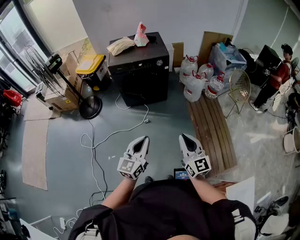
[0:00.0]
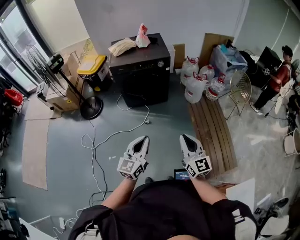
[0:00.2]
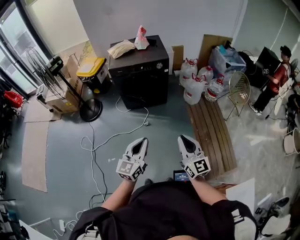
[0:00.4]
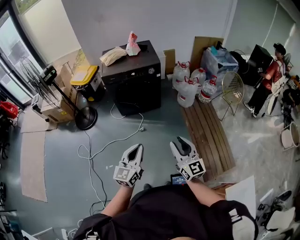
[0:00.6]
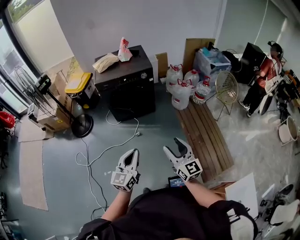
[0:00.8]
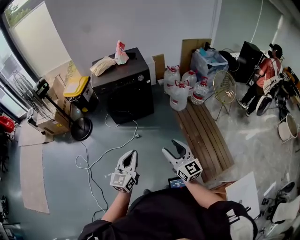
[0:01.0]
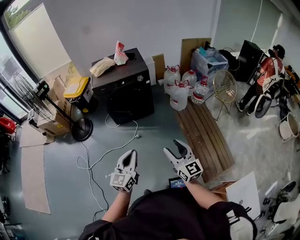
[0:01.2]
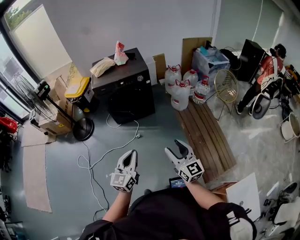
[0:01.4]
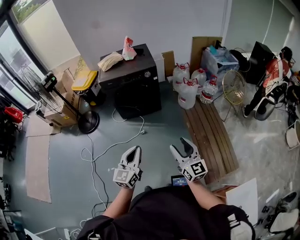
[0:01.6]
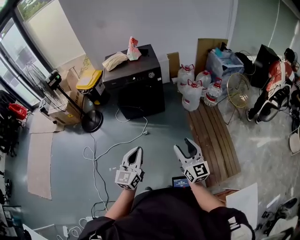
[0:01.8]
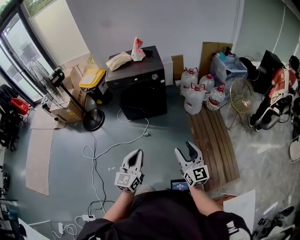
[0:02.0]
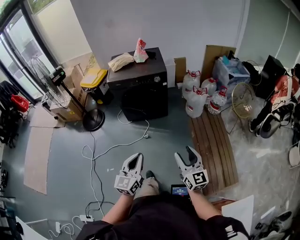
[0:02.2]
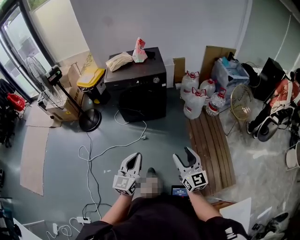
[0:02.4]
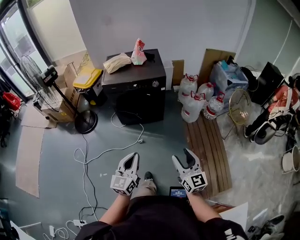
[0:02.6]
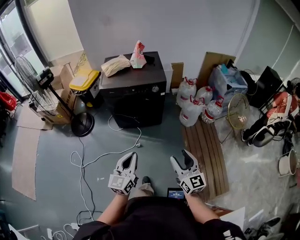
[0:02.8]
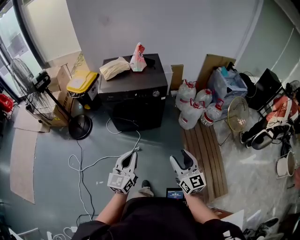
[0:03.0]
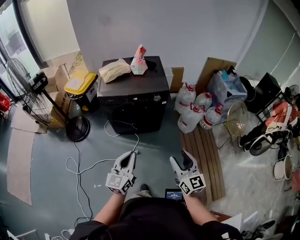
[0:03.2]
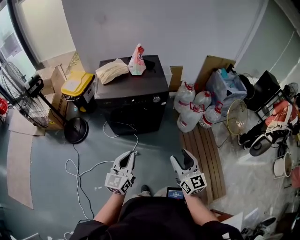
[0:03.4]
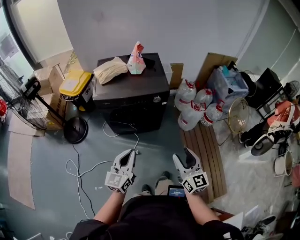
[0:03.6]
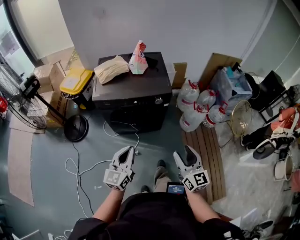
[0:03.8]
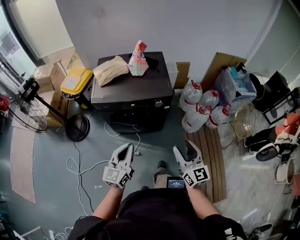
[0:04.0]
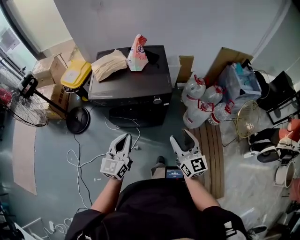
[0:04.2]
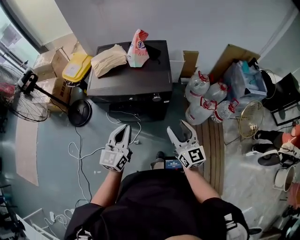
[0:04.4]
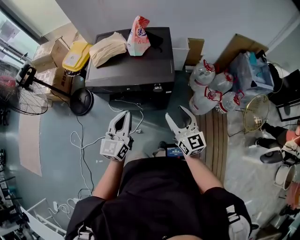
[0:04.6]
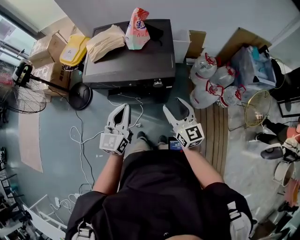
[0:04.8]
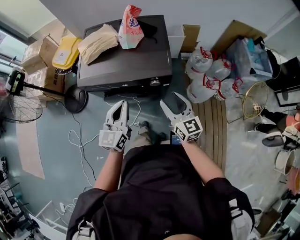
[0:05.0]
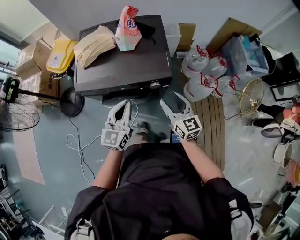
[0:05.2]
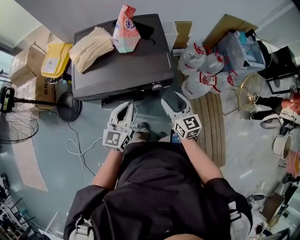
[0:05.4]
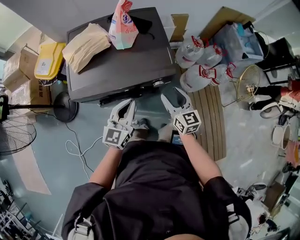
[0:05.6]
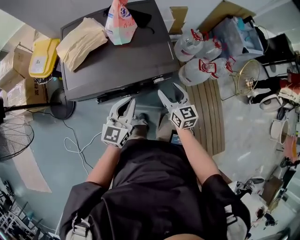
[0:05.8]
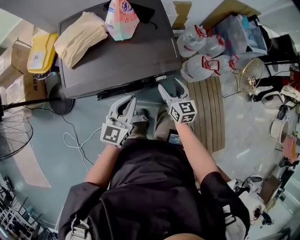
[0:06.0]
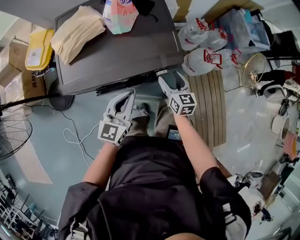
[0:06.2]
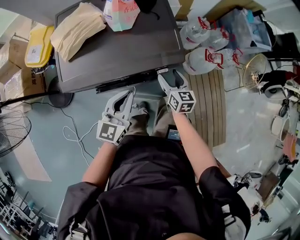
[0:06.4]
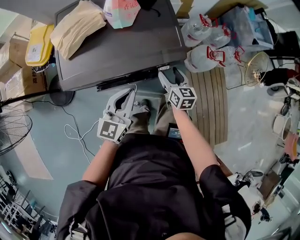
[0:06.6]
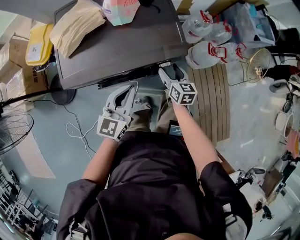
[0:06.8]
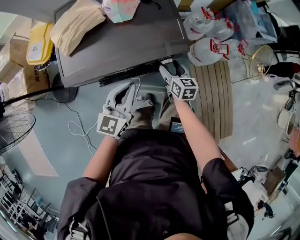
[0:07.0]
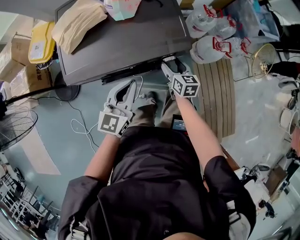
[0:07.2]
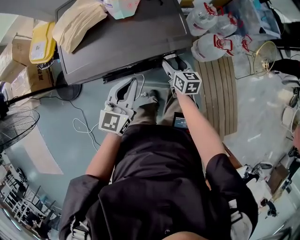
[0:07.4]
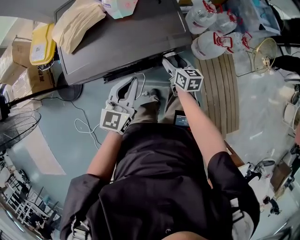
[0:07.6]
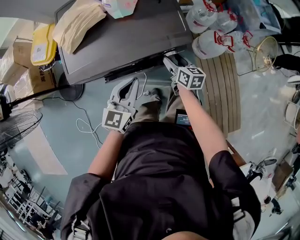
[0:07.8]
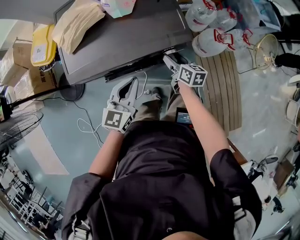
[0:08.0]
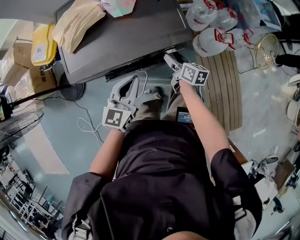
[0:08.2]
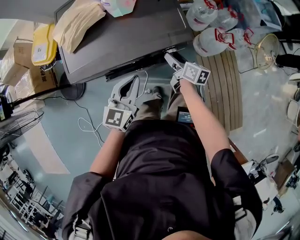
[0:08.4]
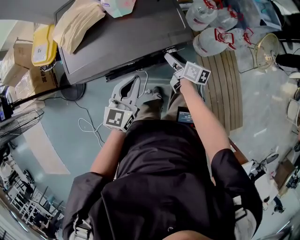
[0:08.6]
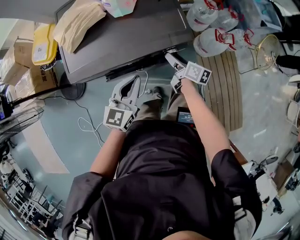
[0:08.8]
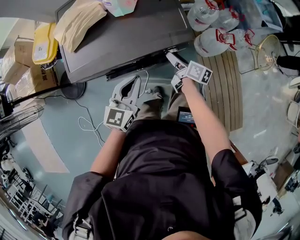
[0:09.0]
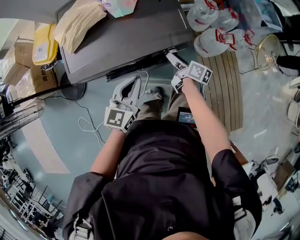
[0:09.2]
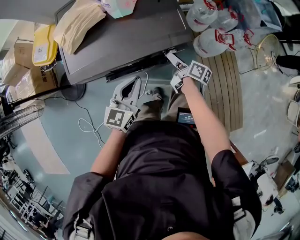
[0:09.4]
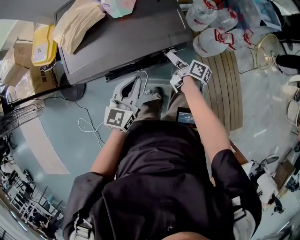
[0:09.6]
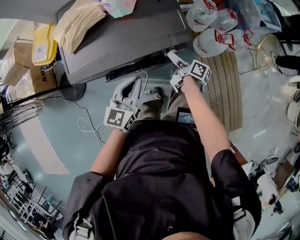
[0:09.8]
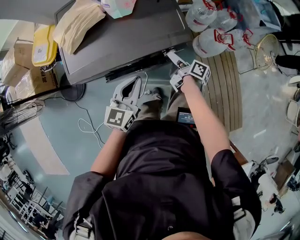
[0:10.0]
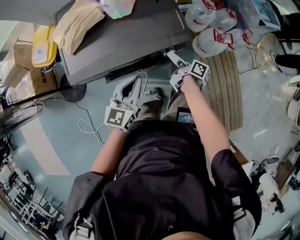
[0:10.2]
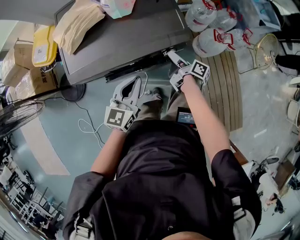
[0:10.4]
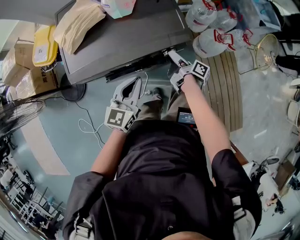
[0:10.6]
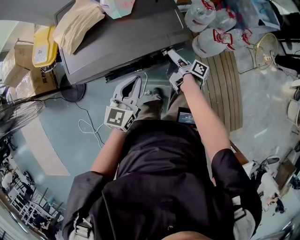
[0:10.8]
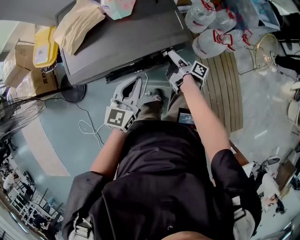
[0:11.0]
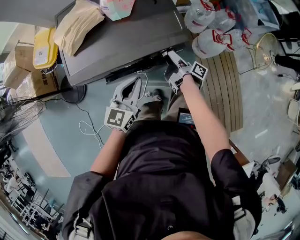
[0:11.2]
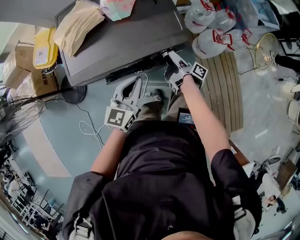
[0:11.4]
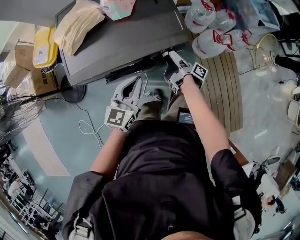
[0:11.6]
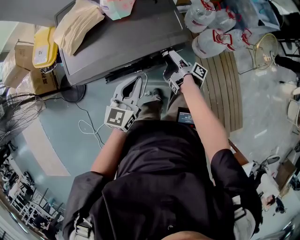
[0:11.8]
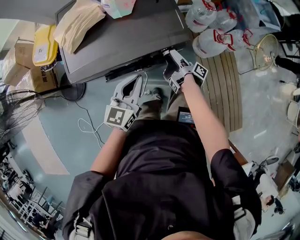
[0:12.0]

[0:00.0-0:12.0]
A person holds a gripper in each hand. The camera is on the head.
0.0 to 1.6 s: The right gripper is displaced to the right by roughly 5 cm, and opens its fingers.
1.6 to 3.0 s: The grippers both shift forward by approximately 20 cm.
3.0 to 4.4 s: The grippers both shift forward by approximately 35 cm.
4.4 to 6.0 s: Both grippers travel together forward and downward, some 25 cm. The left gripper rotates roughly 20 degrees. Meanwhile the right gripper turns by about 30 degrees.
6.0 to 7.6 s: The right gripper shifts roughly 10 cm downward.
7.6 to 9.0 s: The right gripper changes its angle by some 30 degrees.
9.0 to 10.4 s: The right gripper turns by roughly 30 degrees.
10.4 to 12.0 s: The right gripper rotates approximately 20 degrees.

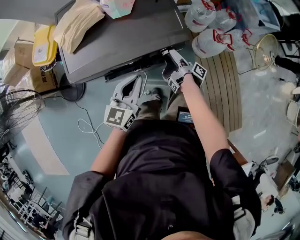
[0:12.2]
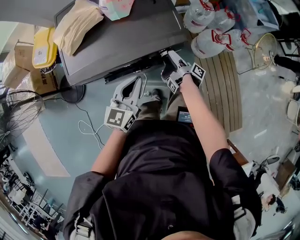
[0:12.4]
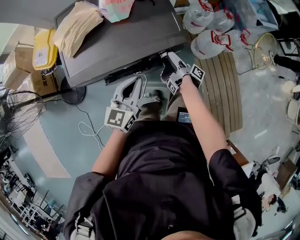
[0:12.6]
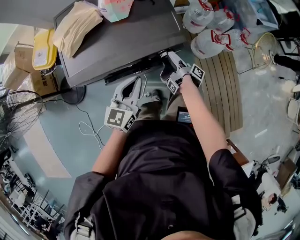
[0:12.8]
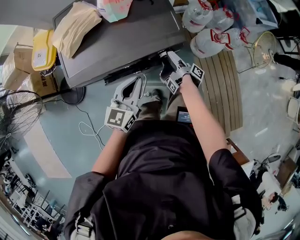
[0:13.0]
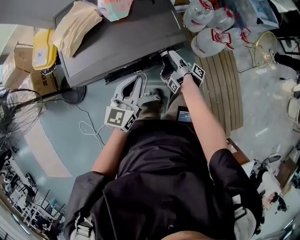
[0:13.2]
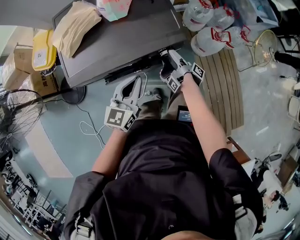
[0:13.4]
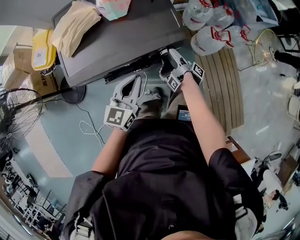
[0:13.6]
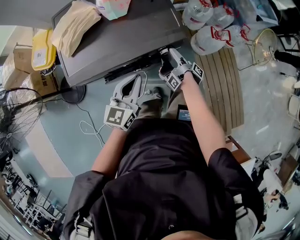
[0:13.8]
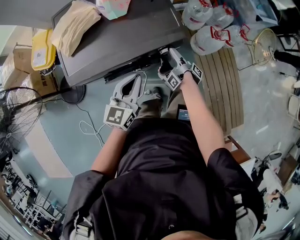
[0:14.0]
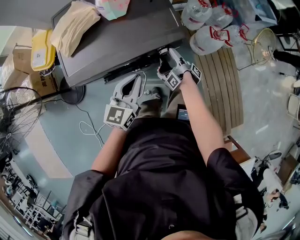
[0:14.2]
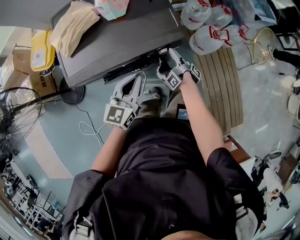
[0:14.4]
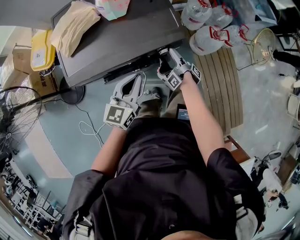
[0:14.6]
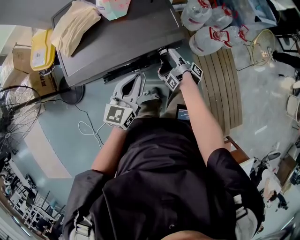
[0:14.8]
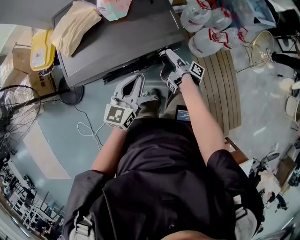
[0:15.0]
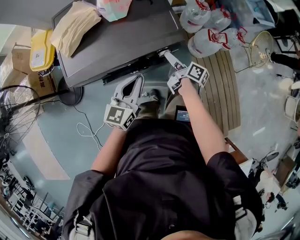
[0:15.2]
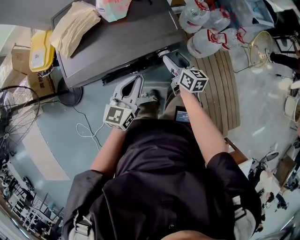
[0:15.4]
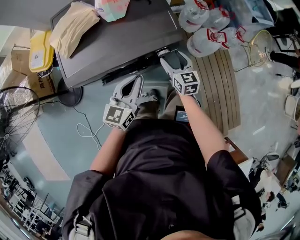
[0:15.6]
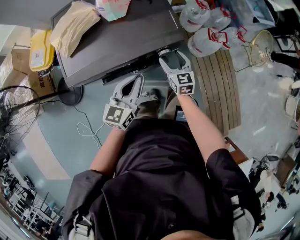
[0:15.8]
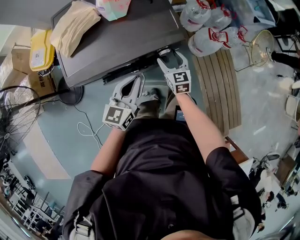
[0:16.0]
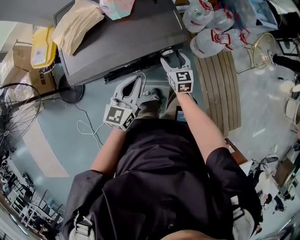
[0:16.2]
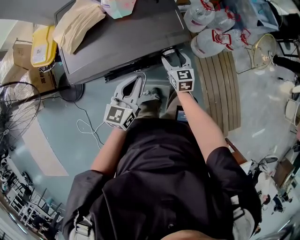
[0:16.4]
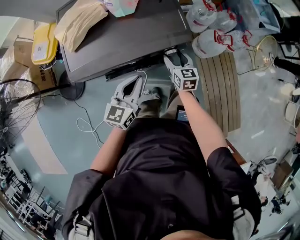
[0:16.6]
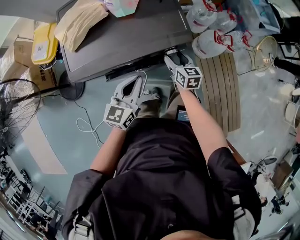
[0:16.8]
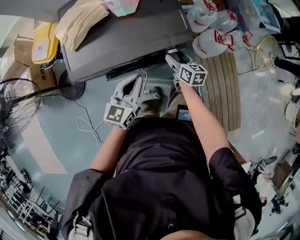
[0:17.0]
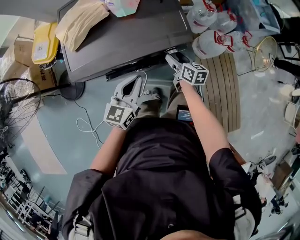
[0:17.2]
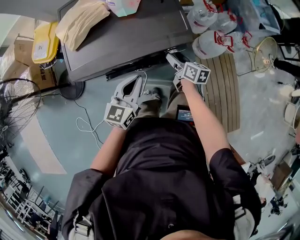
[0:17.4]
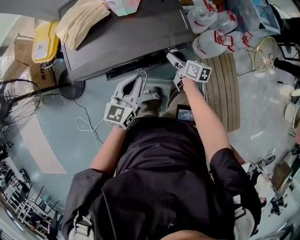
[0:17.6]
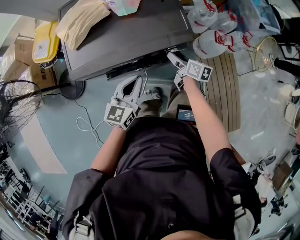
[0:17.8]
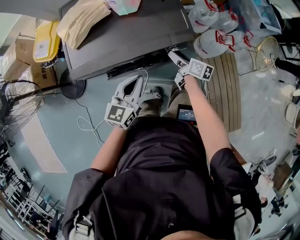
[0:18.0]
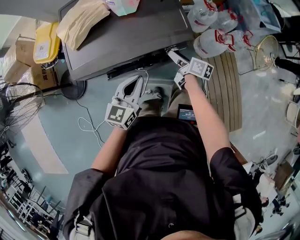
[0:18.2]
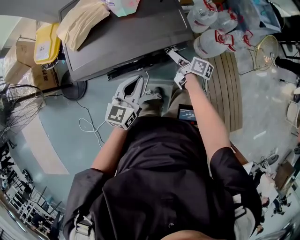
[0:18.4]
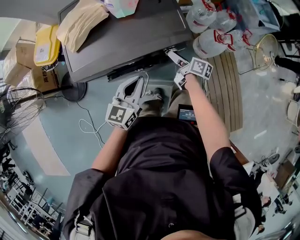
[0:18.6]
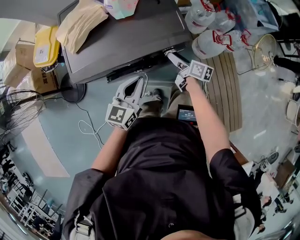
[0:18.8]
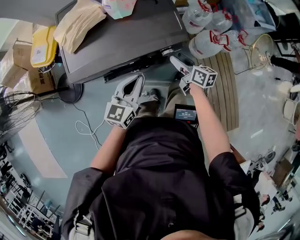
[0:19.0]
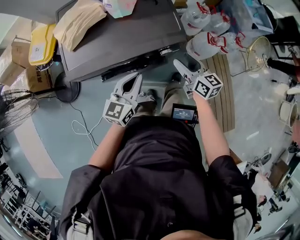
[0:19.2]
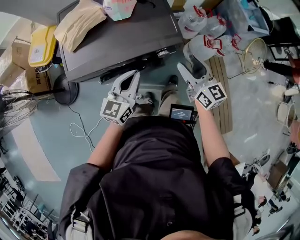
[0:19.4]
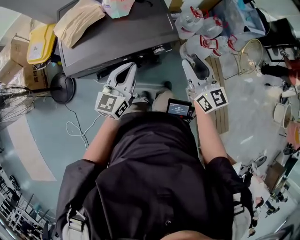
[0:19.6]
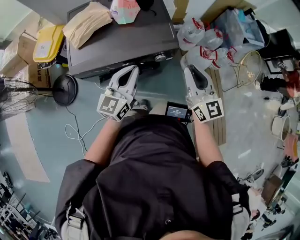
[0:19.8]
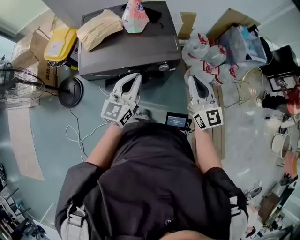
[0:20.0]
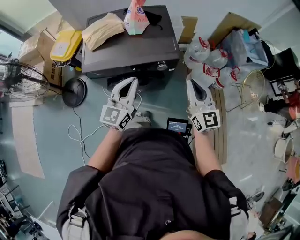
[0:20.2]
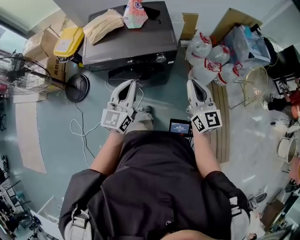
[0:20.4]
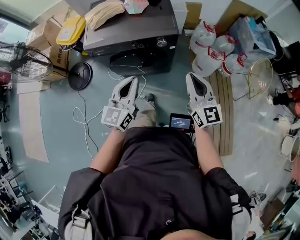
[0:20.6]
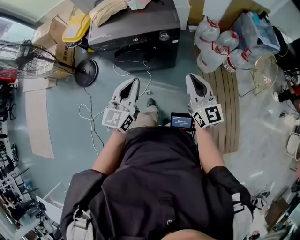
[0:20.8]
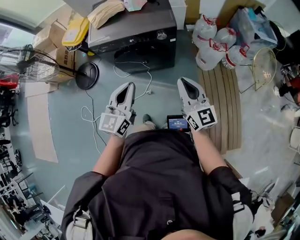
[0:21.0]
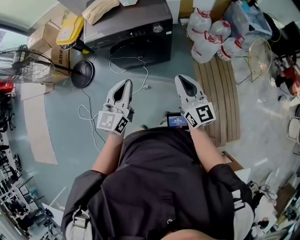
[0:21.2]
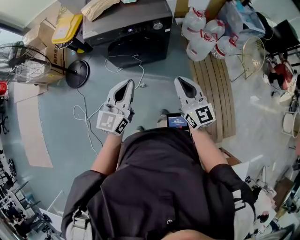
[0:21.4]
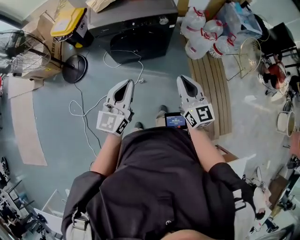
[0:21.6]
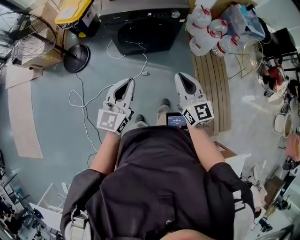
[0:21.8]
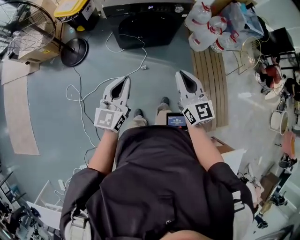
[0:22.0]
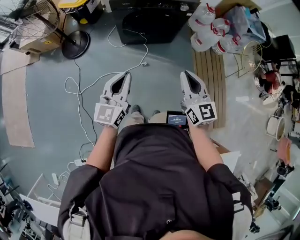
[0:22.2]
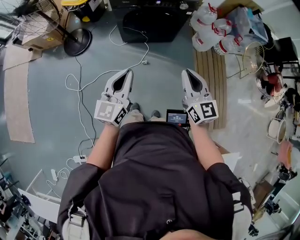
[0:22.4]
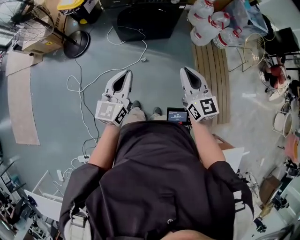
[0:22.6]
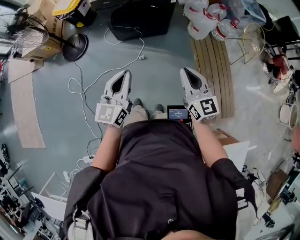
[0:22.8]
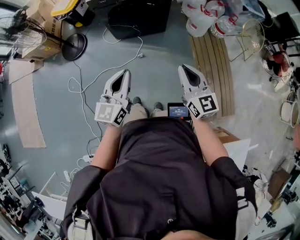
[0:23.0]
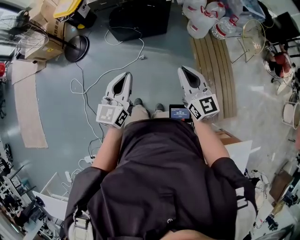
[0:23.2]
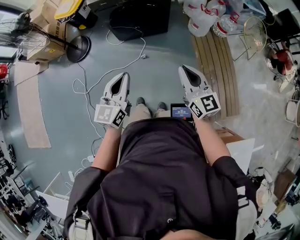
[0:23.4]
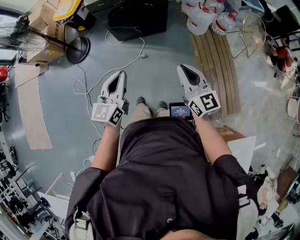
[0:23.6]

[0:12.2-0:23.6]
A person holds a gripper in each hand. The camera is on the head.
12.2 to 13.6 s: The grippers stay close to where they were, moving slightly.
13.6 to 15.0 s: There are only small adjustments of the grippers.
15.0 to 16.4 s: The right gripper twists roughly 100 degrees counterclockwise, seen from behind.
16.4 to 17.8 s: The right gripper rotates around the line of its fingers by roughly 40 degrees, clockwise from behind.
17.8 to 19.4 s: The right gripper heads upward, covering approximately 20 cm, and rotates some 40 degrees.
19.4 to 20.8 s: Both grippers move backward, roughly 25 cm. The right gripper closes its fingers.
20.8 to 22.2 s: The grippers both shift backward and to the left by some 30 cm.
22.2 to 23.6 s: The two grippers go some 15 cm to the right and backward.

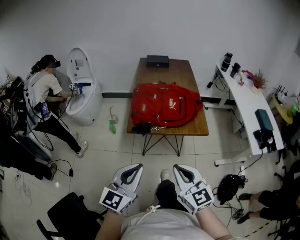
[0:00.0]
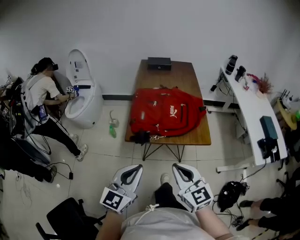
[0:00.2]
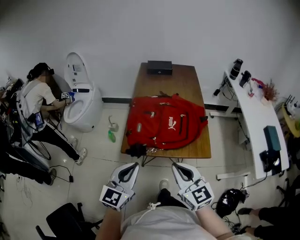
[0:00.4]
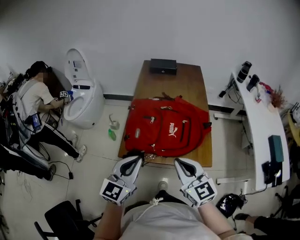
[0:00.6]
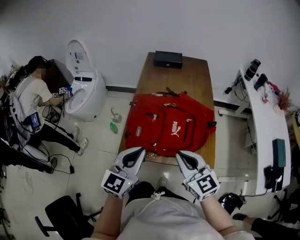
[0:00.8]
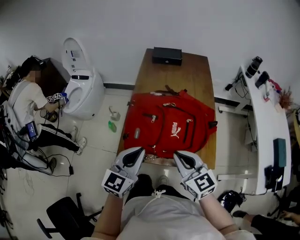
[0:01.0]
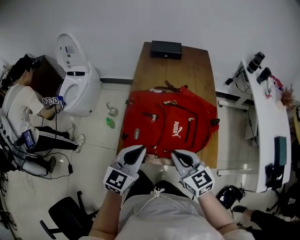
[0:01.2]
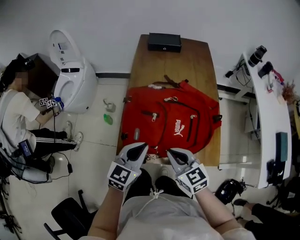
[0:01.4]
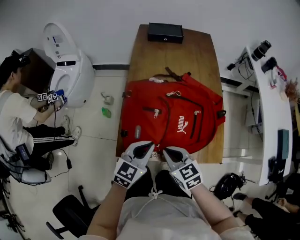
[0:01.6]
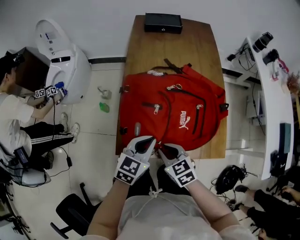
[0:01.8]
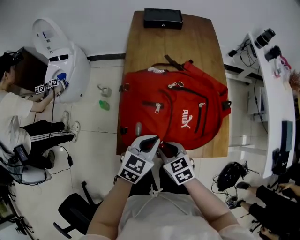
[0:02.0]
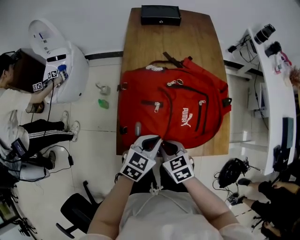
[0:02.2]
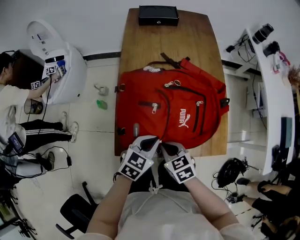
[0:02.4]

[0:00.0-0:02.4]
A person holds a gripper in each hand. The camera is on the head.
0.0 to 1.2 s: Both grippers move forward, approximately 35 cm.
1.2 to 2.4 s: The grippers both shift downward by some 15 cm. The right gripper turns by approximately 30 degrees, and opens, then closes again, while the left gripper turns by some 30 degrees.
